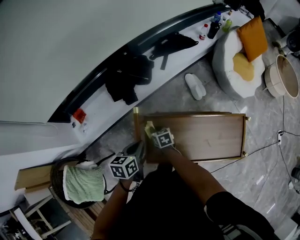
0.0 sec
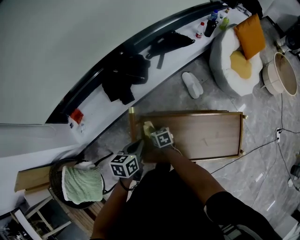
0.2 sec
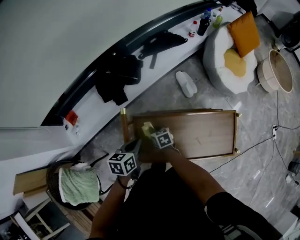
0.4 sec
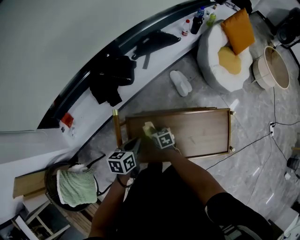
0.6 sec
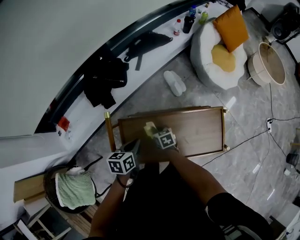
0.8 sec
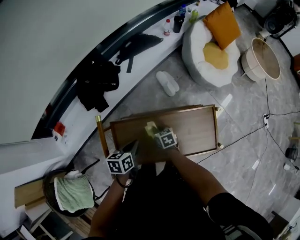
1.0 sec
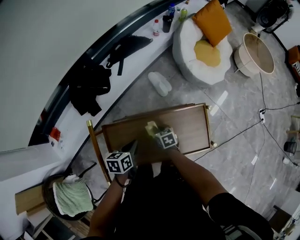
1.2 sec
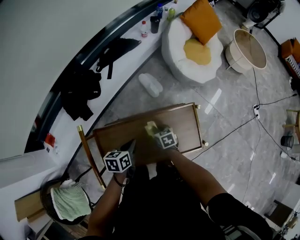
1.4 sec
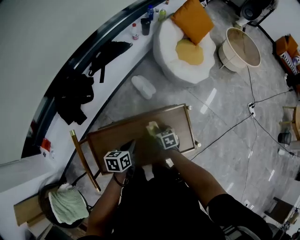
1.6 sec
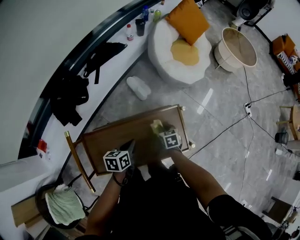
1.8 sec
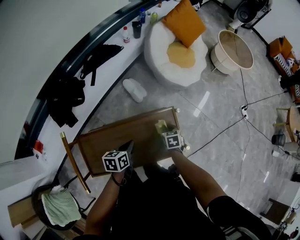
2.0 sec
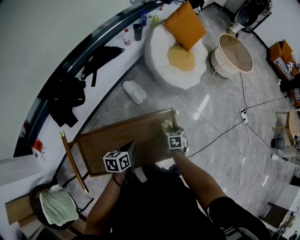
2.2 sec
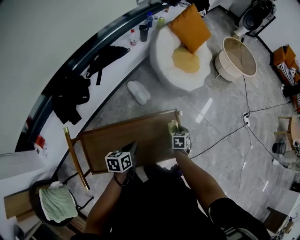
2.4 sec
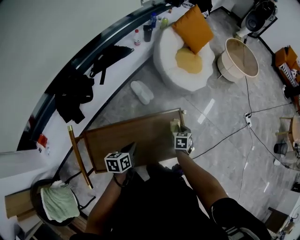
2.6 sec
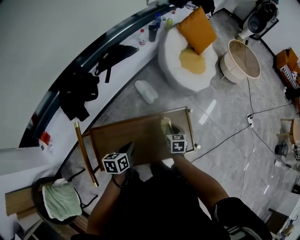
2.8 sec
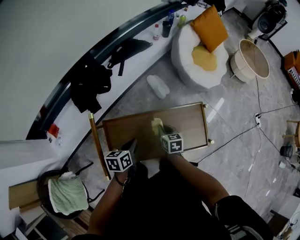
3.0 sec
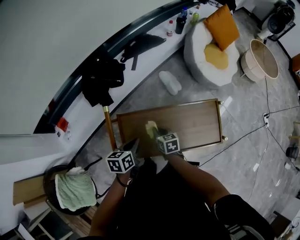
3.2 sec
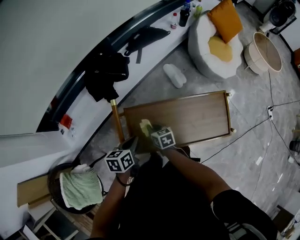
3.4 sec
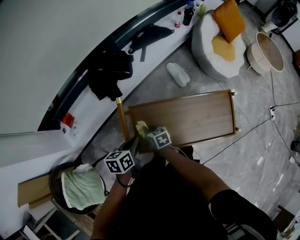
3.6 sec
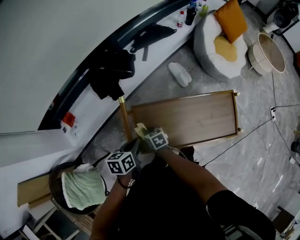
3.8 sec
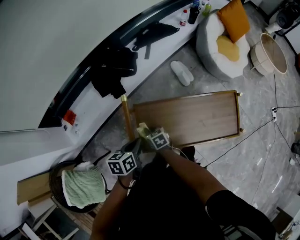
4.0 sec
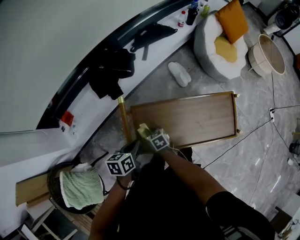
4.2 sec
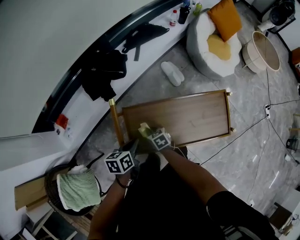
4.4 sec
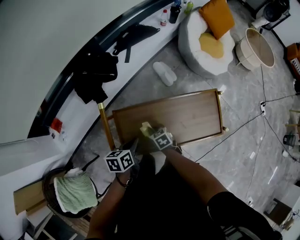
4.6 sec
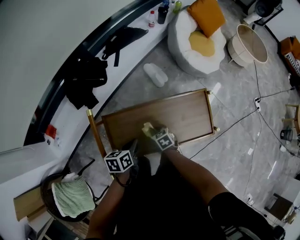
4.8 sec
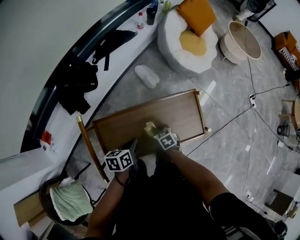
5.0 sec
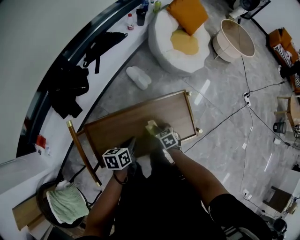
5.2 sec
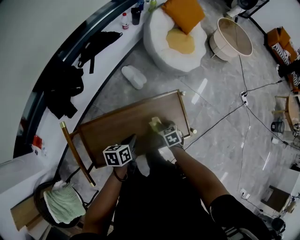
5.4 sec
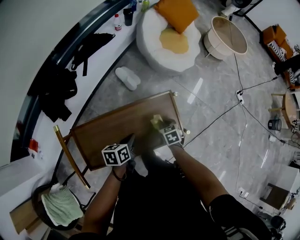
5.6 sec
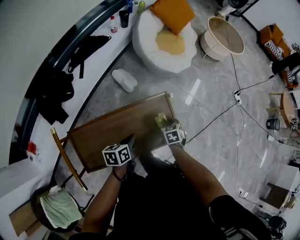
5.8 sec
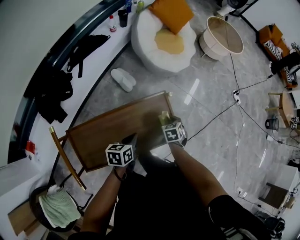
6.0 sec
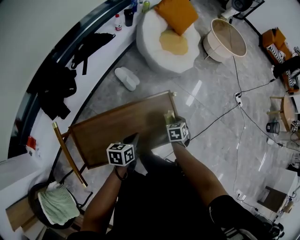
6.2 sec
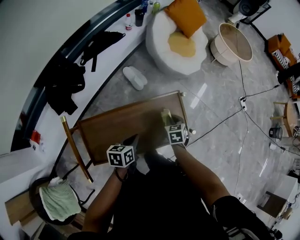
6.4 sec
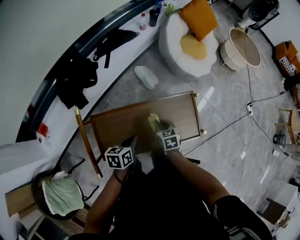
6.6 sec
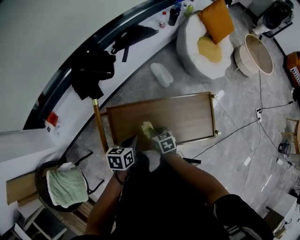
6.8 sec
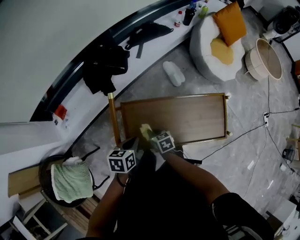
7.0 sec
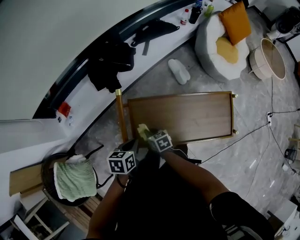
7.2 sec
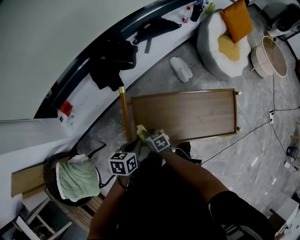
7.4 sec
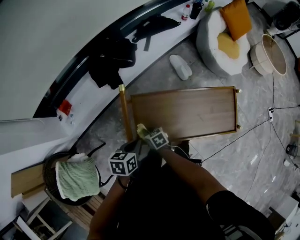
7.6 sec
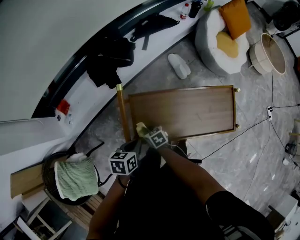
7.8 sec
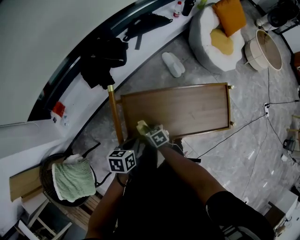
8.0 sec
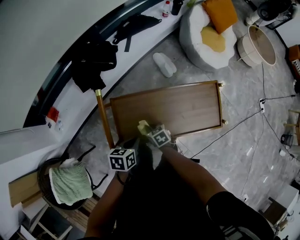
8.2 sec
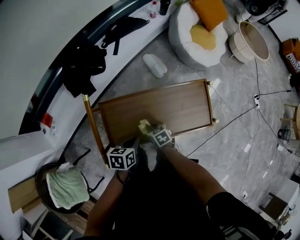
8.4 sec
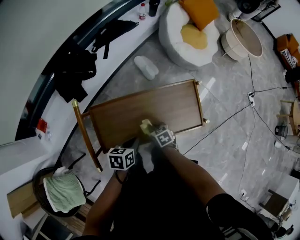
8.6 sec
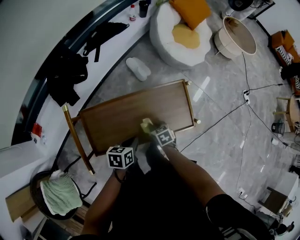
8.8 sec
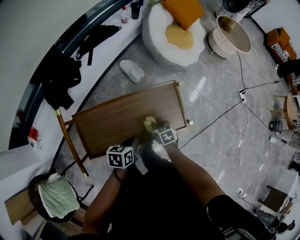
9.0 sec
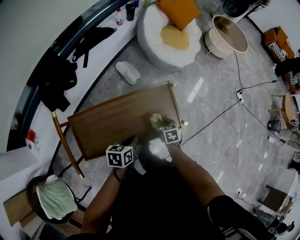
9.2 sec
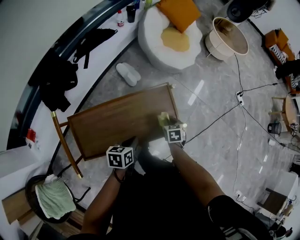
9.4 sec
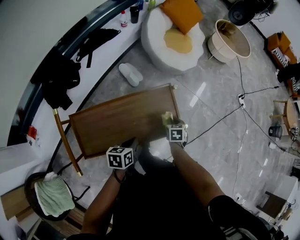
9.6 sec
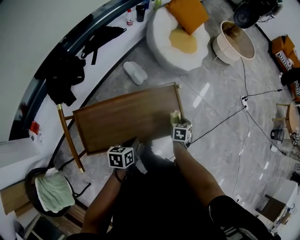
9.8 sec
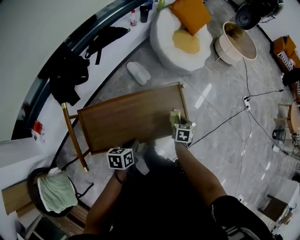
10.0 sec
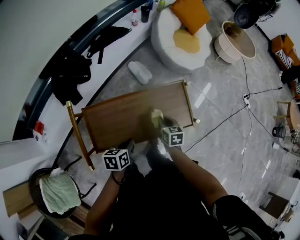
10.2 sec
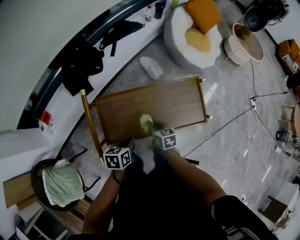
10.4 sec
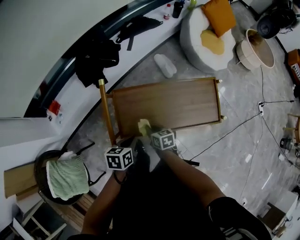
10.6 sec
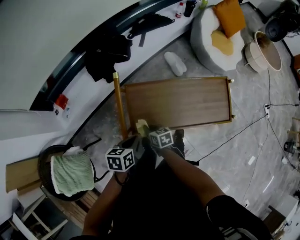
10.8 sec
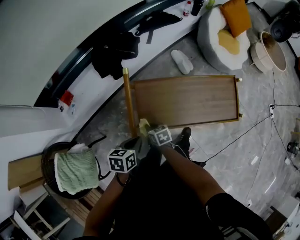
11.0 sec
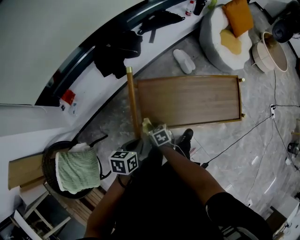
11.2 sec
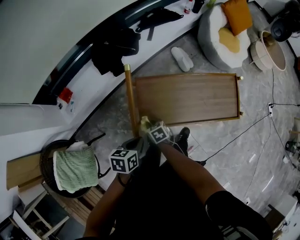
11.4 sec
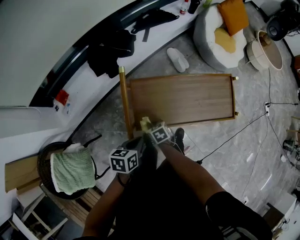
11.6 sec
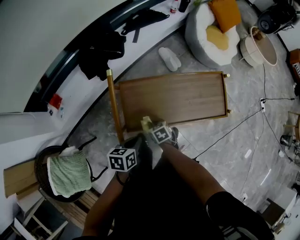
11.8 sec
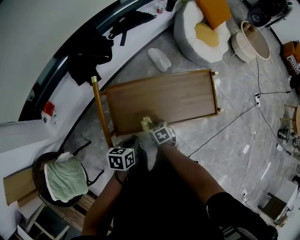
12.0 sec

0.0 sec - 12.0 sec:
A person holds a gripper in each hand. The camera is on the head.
0.0 sec - 1.6 sec: Both grippers move to the right, some 35 cm.
1.6 sec - 3.0 sec: The left gripper shifts approximately 10 cm to the left and backward, while the right gripper moves upward, about 5 cm, and moves some 20 cm to the right and comes back.
3.0 sec - 4.4 sec: The right gripper is displaced to the left and downward by roughly 25 cm, and rotates roughly 30 degrees; the left gripper heads to the left, covering roughly 15 cm.
4.4 sec - 6.0 sec: The left gripper moves roughly 35 cm, and changes its angle by about 20 degrees. Meanwhile the right gripper shifts by roughly 50 cm, and turns by roughly 40 degrees.
6.0 sec - 7.6 sec: The left gripper moves about 35 cm; the right gripper changes place by roughly 60 cm, and rotates roughly 50 degrees.
7.6 sec - 9.0 sec: The left gripper shifts by about 30 cm; the right gripper ends up approximately 40 cm from where it was, and rotates some 20 degrees.
9.0 sec - 10.4 sec: The left gripper shifts by roughly 15 cm; the right gripper changes place by approximately 15 cm.
10.4 sec - 12.0 sec: The left gripper goes to the left and returns, roughly 20 cm each way. Meanwhile the right gripper travels downward by roughly 10 cm, goes to the left and returns, about 25 cm each way, and rotates roughly 30 degrees.

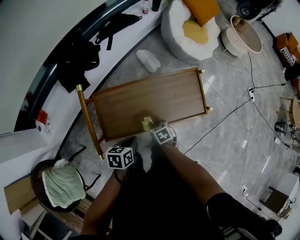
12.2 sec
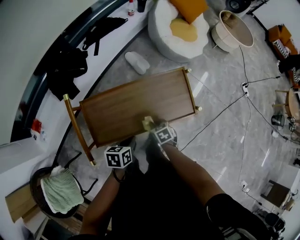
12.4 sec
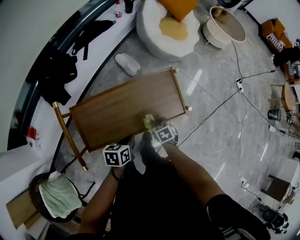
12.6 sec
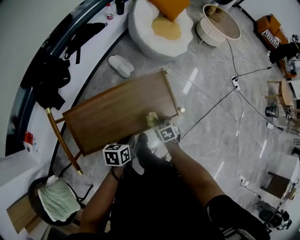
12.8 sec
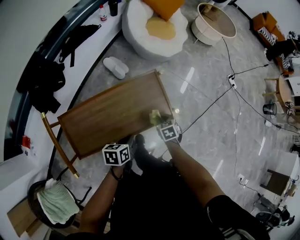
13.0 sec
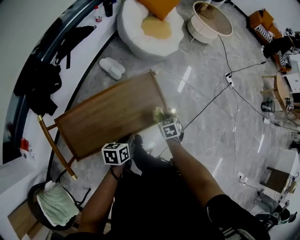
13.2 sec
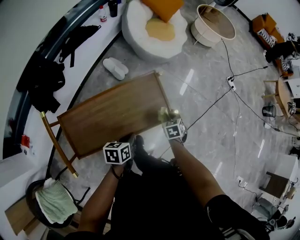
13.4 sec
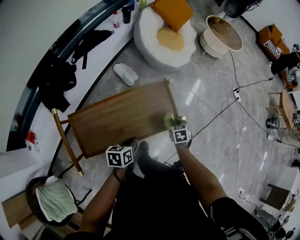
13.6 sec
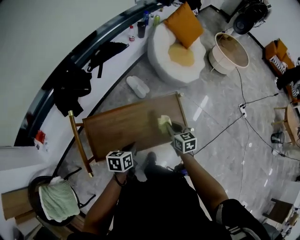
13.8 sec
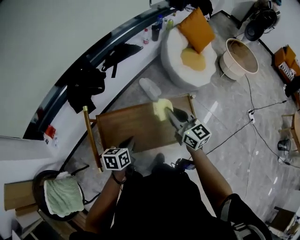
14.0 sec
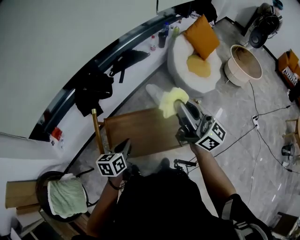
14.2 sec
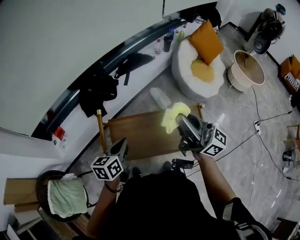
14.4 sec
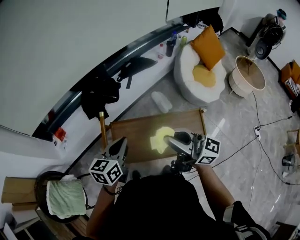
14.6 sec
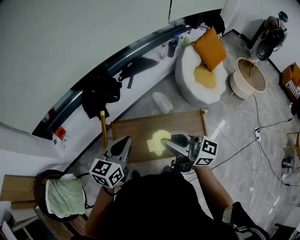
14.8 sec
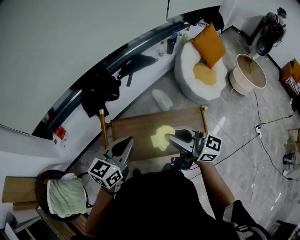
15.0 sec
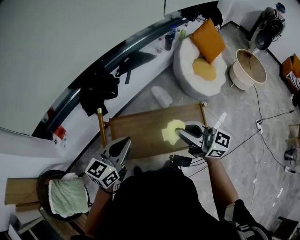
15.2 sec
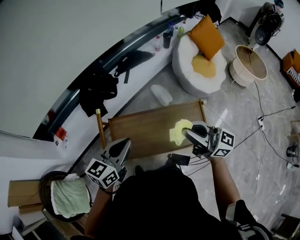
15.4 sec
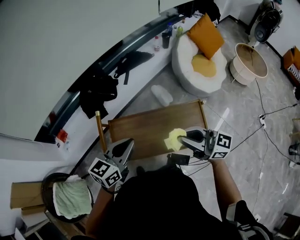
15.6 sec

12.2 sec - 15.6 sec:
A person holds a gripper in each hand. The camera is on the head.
12.2 sec - 13.8 sec: The right gripper changes place by some 25 cm, and turns by approximately 30 degrees.
13.8 sec - 15.6 sec: Both grippers move upward, about 20 cm. The left gripper turns by some 40 degrees. The right gripper points its fingers about 40 degrees further upward.

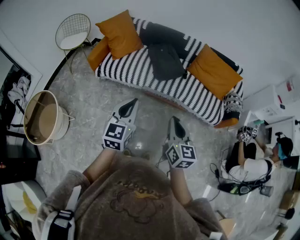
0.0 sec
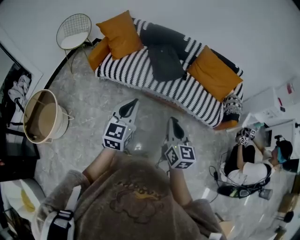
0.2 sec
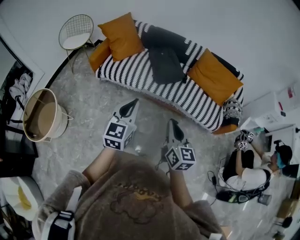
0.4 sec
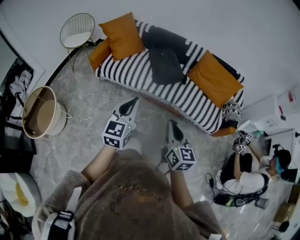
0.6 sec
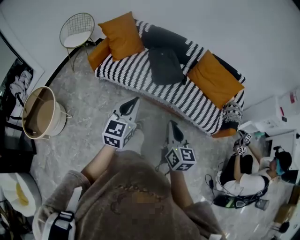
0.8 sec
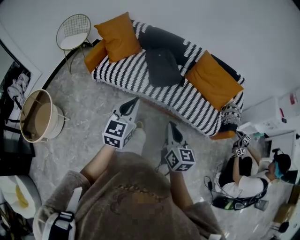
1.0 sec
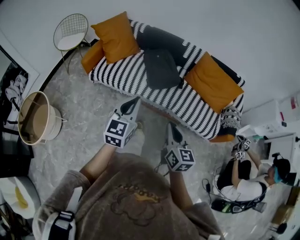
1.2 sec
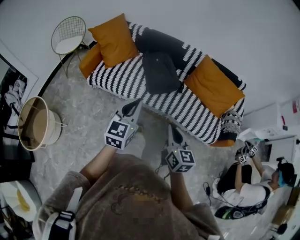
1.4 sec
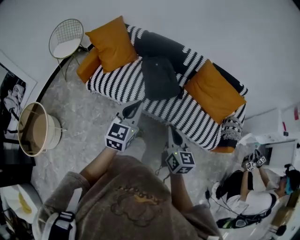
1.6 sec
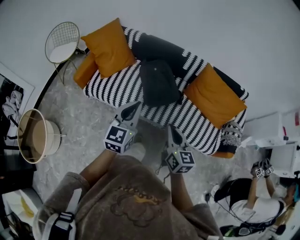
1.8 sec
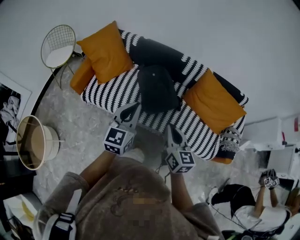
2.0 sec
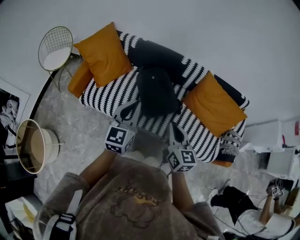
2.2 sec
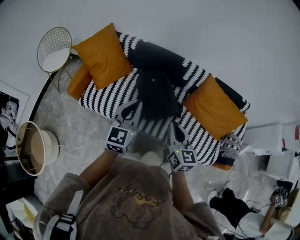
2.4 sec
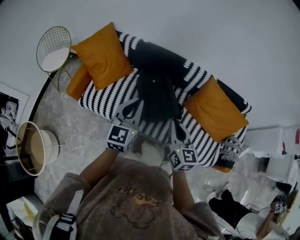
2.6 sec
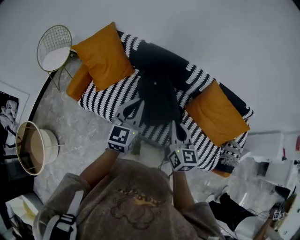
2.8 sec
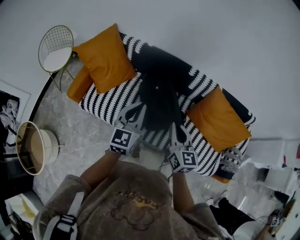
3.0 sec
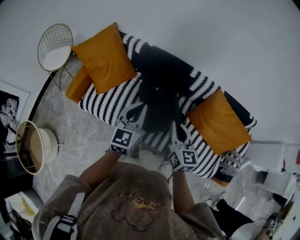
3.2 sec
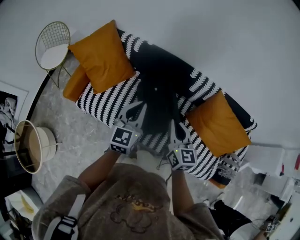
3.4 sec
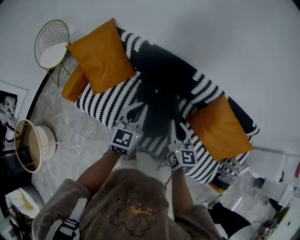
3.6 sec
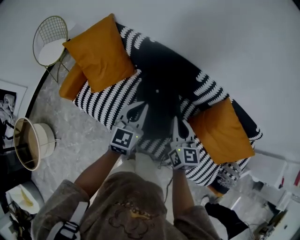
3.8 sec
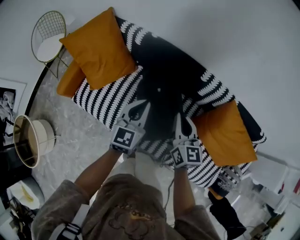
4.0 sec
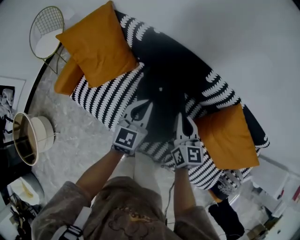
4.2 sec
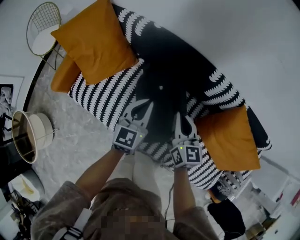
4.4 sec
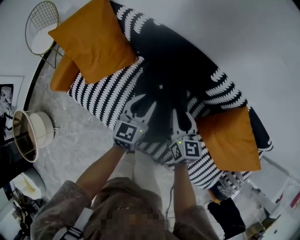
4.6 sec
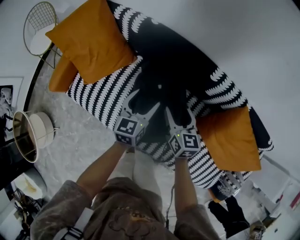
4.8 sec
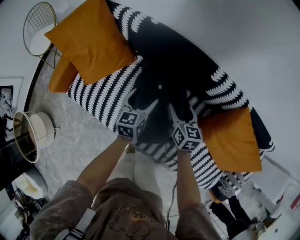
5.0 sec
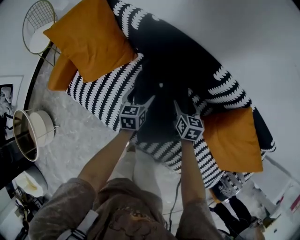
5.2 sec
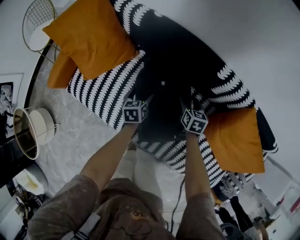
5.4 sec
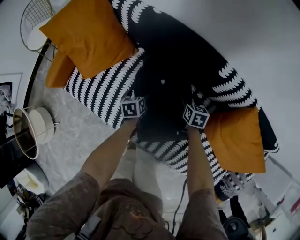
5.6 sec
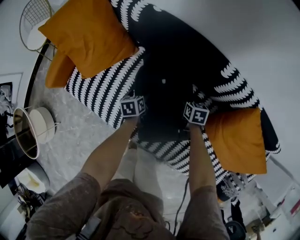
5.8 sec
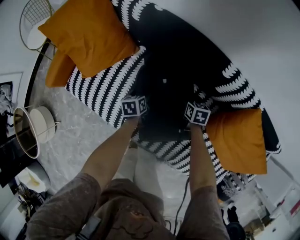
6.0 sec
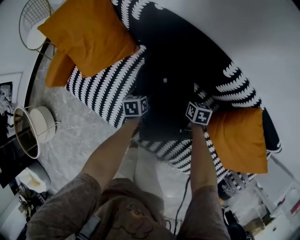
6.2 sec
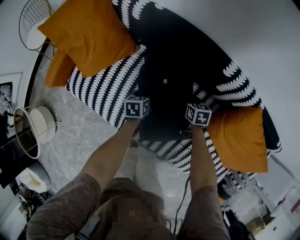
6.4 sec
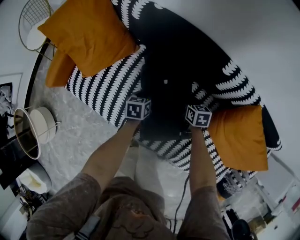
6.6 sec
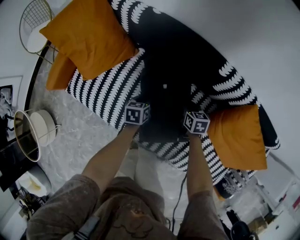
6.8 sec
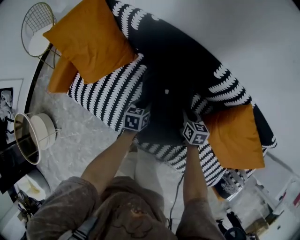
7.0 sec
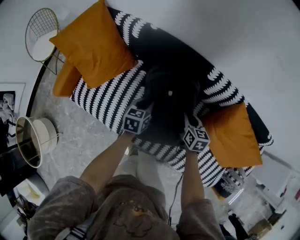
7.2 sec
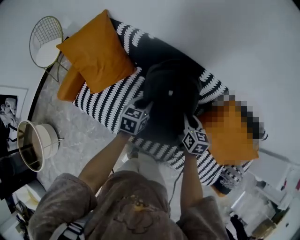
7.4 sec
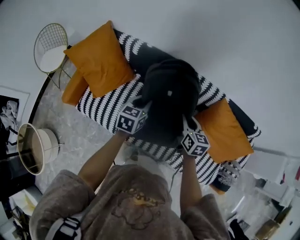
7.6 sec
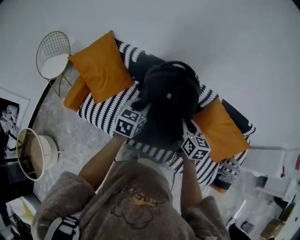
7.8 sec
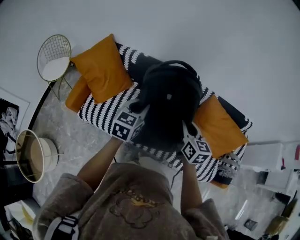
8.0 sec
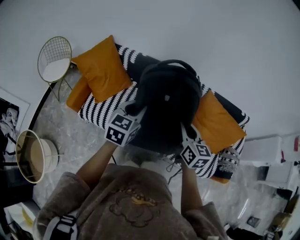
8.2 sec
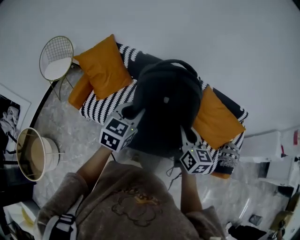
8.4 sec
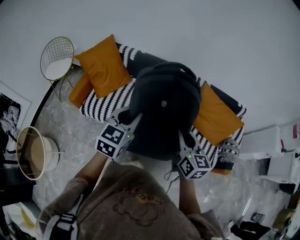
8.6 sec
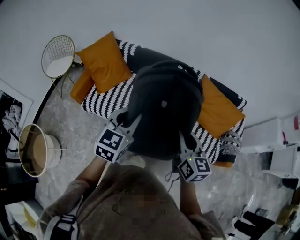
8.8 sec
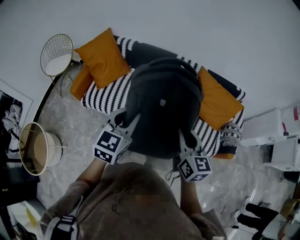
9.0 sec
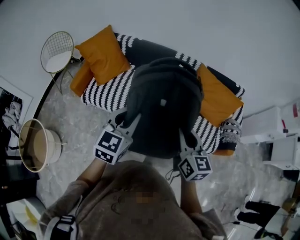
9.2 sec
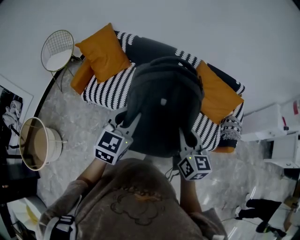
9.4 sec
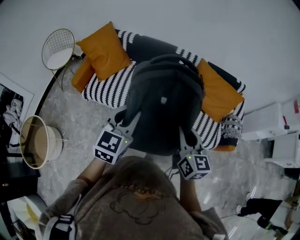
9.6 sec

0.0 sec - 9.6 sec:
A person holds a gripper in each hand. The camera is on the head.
0.0 sec - 1.6 sec: The left gripper shifts approximately 25 cm forward and to the right, while the right gripper travels forward by roughly 20 cm.
1.6 sec - 3.2 sec: The grippers both shift forward by some 35 cm.
3.2 sec - 4.8 sec: The grippers both shift downward and forward by approximately 30 cm. The left gripper changes its angle by some 20 degrees, and opens its fingers; the right gripper opens its fingers.
4.8 sec - 6.4 sec: Both grippers travel together downward, approximately 20 cm. The right gripper swivels some 30 degrees, and closes. Meanwhile the left gripper tips its fingers downward by about 30 degrees.
6.4 sec - 8.0 sec: The right gripper travels upward and backward by roughly 50 cm, and points its fingers some 30 degrees further upward; the left gripper shifts approximately 50 cm upward, angles its fingers upward, by about 30 degrees, and closes.
8.0 sec - 9.6 sec: Both grippers travel together backward, approximately 35 cm.
